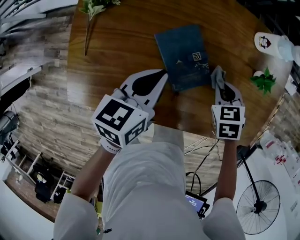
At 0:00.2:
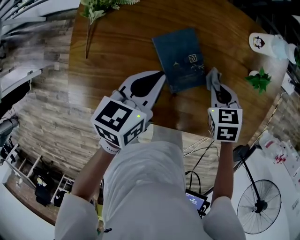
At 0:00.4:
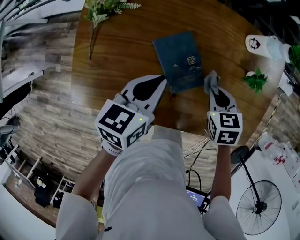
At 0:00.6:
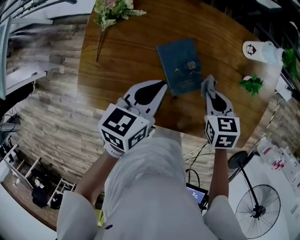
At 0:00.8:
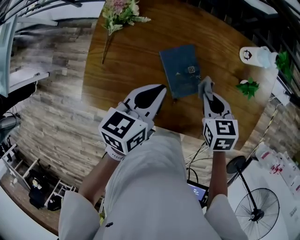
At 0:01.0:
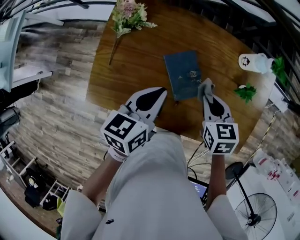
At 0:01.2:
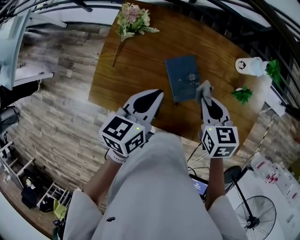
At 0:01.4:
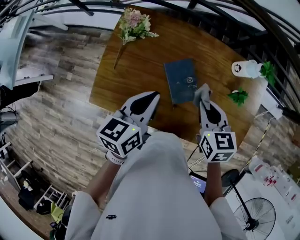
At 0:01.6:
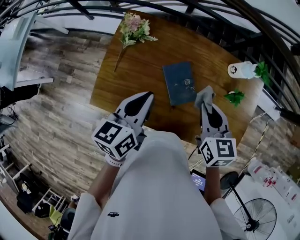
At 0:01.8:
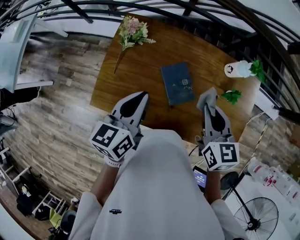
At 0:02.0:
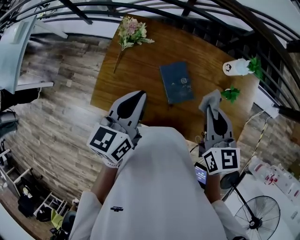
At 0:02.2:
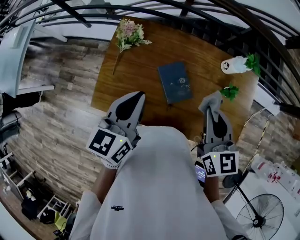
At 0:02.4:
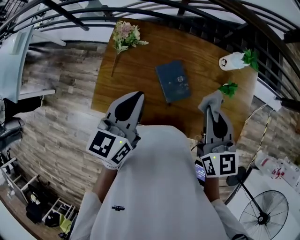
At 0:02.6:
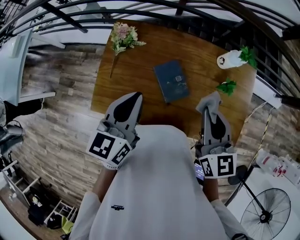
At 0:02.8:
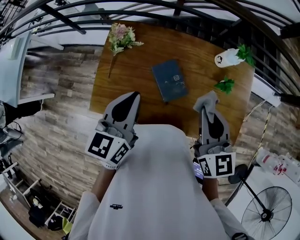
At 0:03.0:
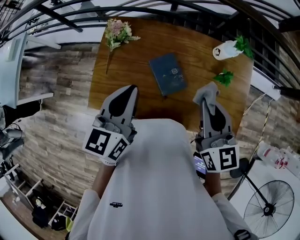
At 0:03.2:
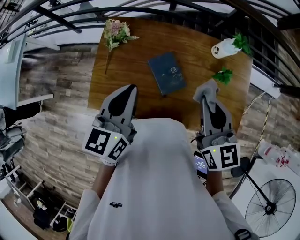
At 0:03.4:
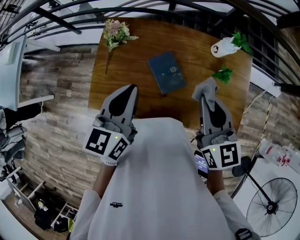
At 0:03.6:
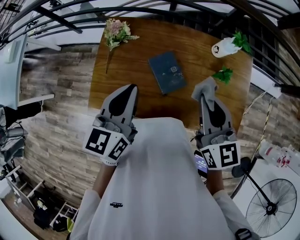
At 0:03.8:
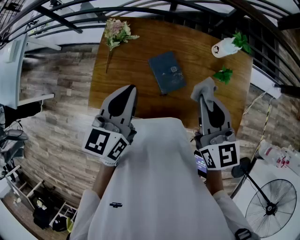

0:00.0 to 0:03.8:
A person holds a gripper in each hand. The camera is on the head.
0:00.0 to 0:01.2: The left gripper goes about 15 cm upward. The right gripper moves upward and to the left, approximately 20 cm, and rotates about 30 degrees.
0:01.2 to 0:02.6: Both grippers travel together upward, some 15 cm. The right gripper points its fingers about 30 degrees further upward.
0:02.6 to 0:03.8: The grippers make only small movements.

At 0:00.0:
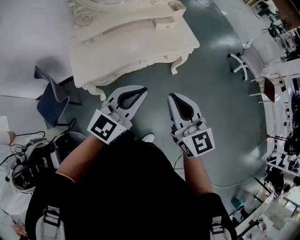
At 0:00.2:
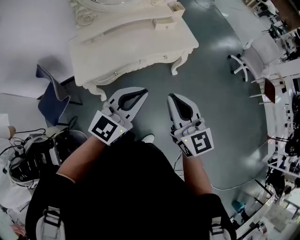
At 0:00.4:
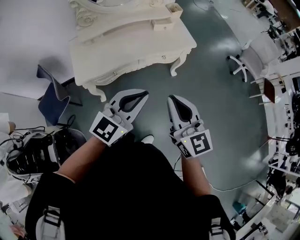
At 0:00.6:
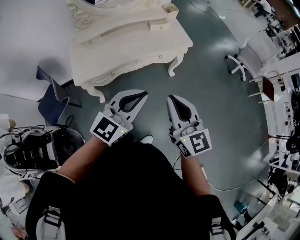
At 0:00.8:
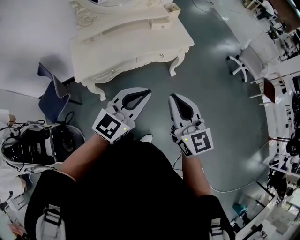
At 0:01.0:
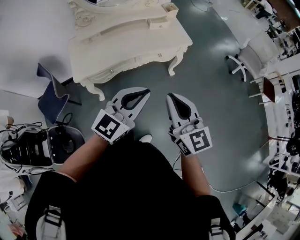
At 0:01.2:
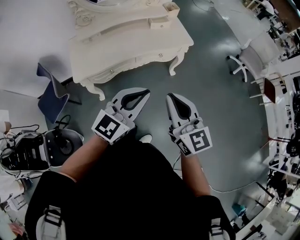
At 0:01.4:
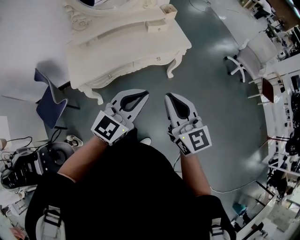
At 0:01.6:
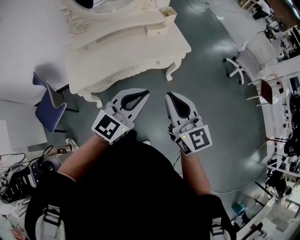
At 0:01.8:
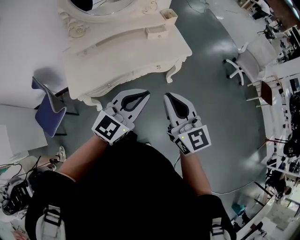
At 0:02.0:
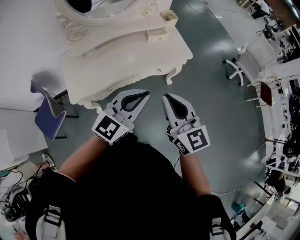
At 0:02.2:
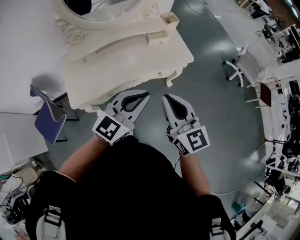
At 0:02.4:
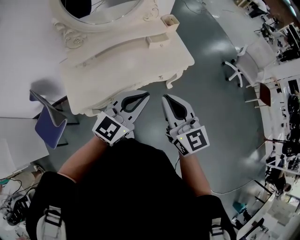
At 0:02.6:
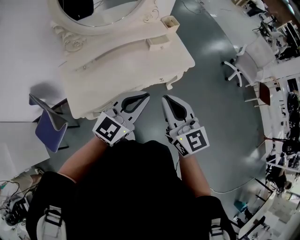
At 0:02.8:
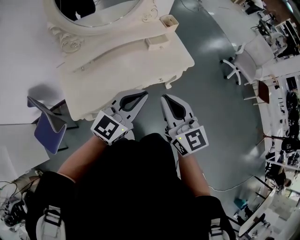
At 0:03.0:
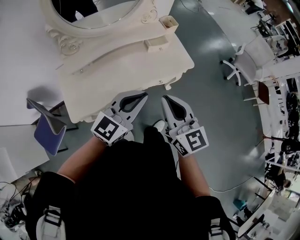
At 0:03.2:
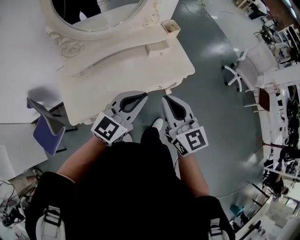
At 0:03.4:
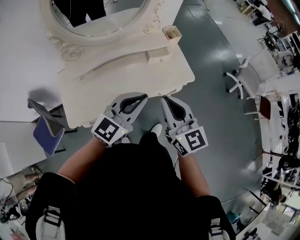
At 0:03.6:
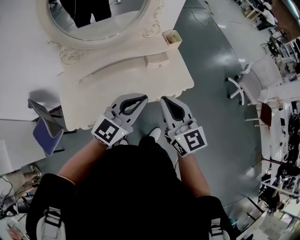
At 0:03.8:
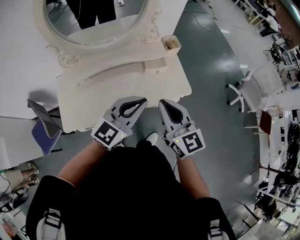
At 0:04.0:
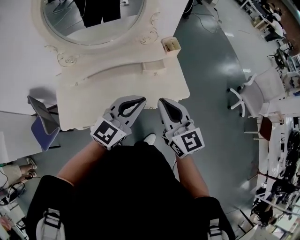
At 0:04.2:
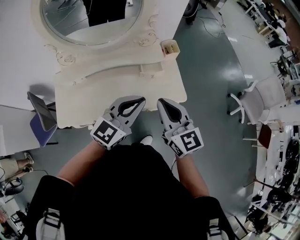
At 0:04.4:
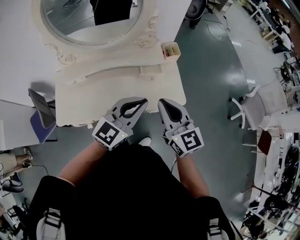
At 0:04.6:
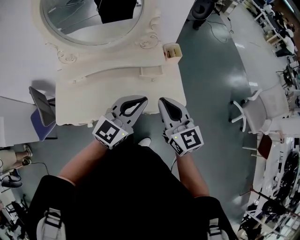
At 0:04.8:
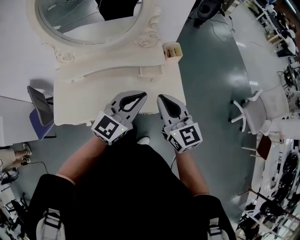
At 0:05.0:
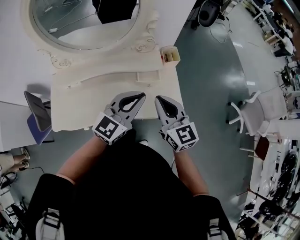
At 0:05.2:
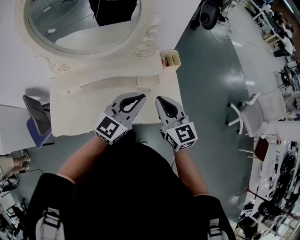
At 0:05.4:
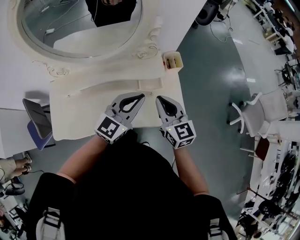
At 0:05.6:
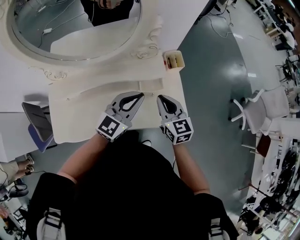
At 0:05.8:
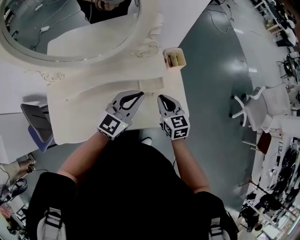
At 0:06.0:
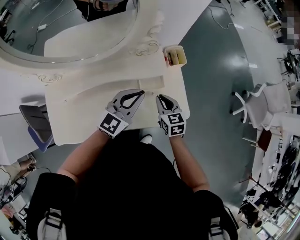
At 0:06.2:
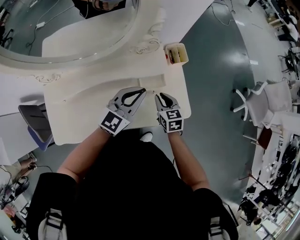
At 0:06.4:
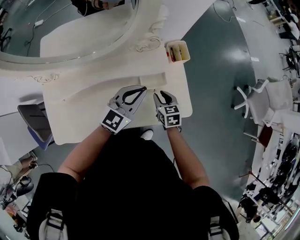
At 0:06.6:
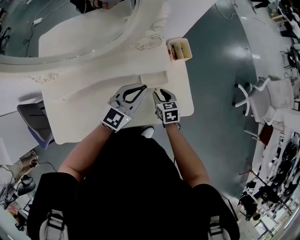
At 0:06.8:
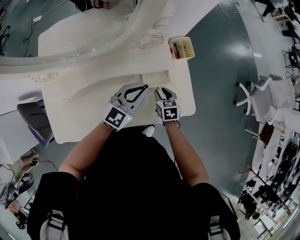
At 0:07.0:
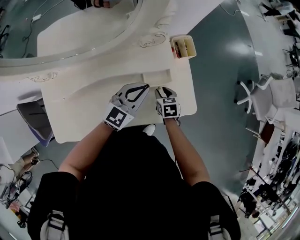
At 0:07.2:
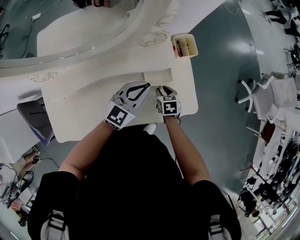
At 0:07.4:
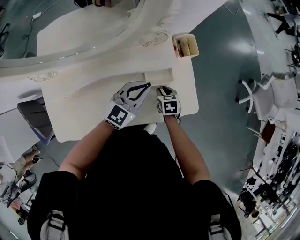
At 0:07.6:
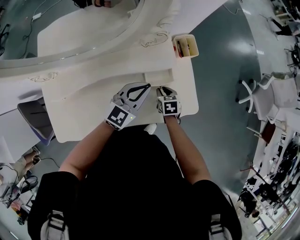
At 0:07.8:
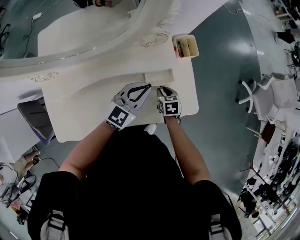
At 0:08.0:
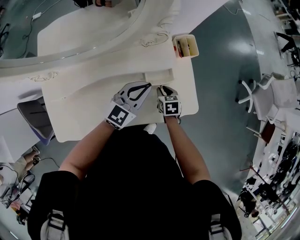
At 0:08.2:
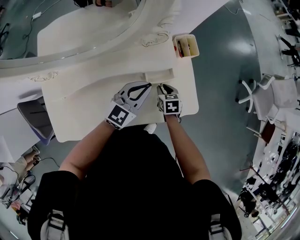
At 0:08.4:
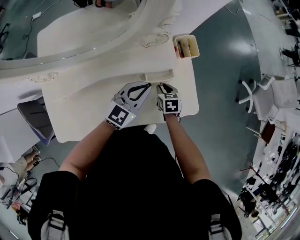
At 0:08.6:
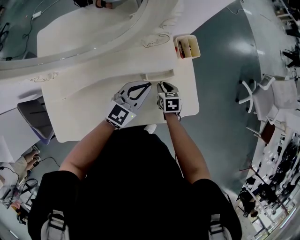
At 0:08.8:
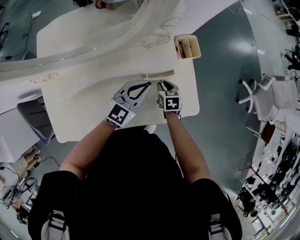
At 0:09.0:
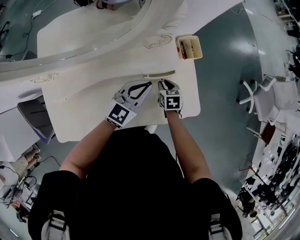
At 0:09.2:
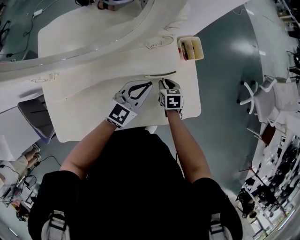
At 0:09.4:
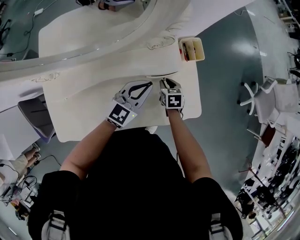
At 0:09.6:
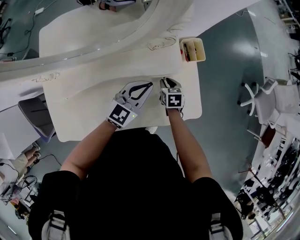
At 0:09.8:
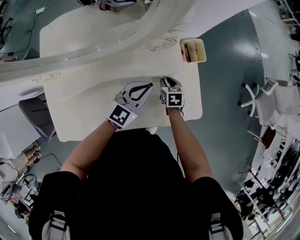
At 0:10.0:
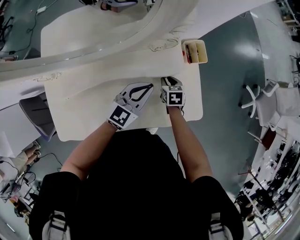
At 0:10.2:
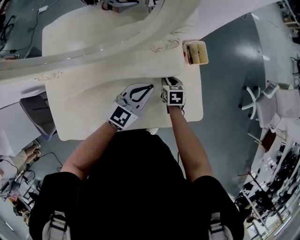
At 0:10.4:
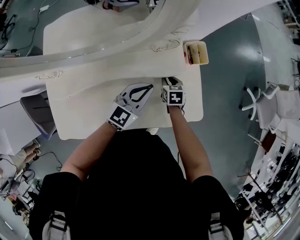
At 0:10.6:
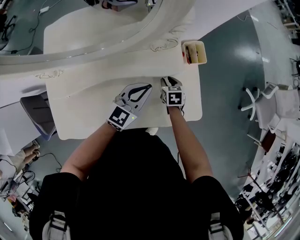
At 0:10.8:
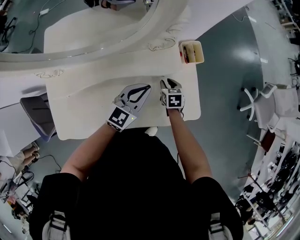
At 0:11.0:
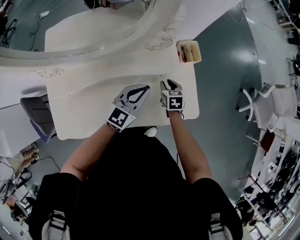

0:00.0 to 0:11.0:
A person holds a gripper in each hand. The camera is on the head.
0:00.0 to 0:01.6: The left gripper shifts about 5 cm to the right, and moves some 10 cm backward and comes back. Meanwhile the right gripper travels backward and back again, some 10 cm each way.
0:01.6 to 0:03.2: The grippers both shift forward and to the left by roughly 20 cm.
0:03.2 to 0:04.8: The two grippers go roughly 25 cm forward and to the right.
0:04.8 to 0:06.2: The right gripper travels downward and forward by about 30 cm, and tilts its fingers some 30 degrees downward. Meanwhile the left gripper moves forward and downward, approximately 20 cm.
0:06.2 to 0:07.8: The left gripper shifts about 5 cm downward, while the right gripper shifts about 10 cm downward.
0:07.8 to 0:09.4: The right gripper moves forward, roughly 5 cm.
0:09.4 to 0:11.0: The grippers move only a little.

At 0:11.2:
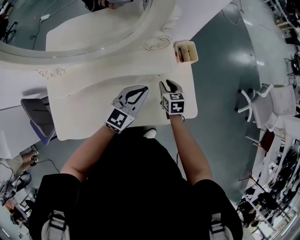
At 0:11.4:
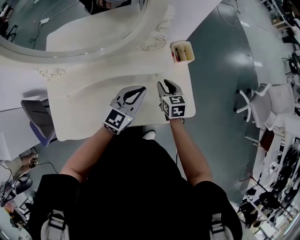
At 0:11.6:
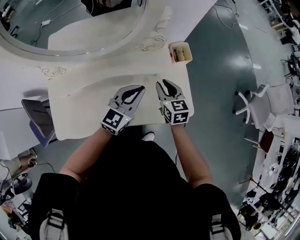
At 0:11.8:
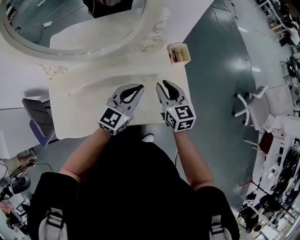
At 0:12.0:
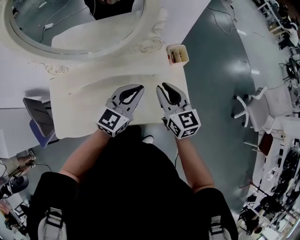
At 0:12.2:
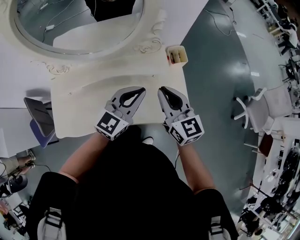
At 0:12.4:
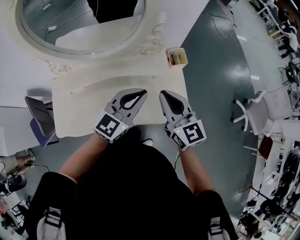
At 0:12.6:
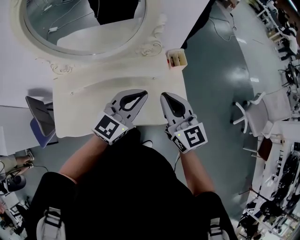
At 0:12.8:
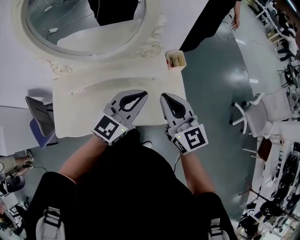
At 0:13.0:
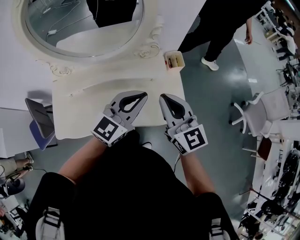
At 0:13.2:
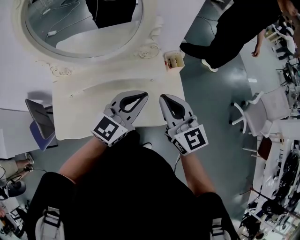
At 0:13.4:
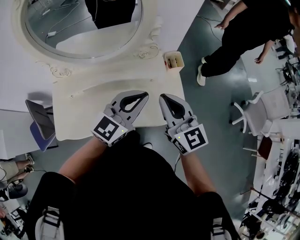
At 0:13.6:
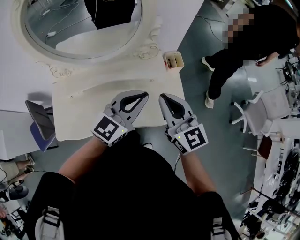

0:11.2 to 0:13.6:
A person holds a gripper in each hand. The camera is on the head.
0:11.2 to 0:12.4: The left gripper travels upward and backward by about 15 cm. Meanwhile the right gripper goes approximately 30 cm upward and backward, tilts its fingers approximately 40 degrees upward, and closes its fingers.
0:12.4 to 0:13.6: The grippers stay close to where they were, moving slightly.

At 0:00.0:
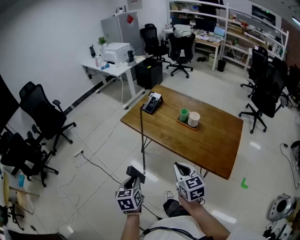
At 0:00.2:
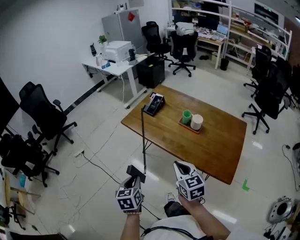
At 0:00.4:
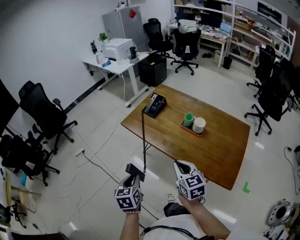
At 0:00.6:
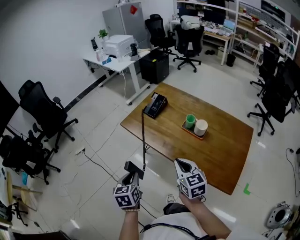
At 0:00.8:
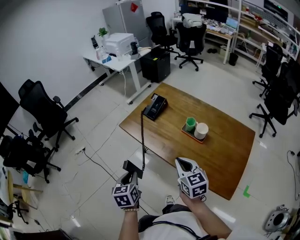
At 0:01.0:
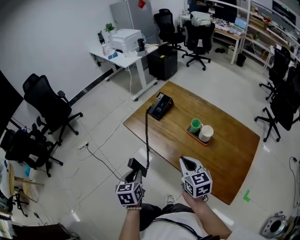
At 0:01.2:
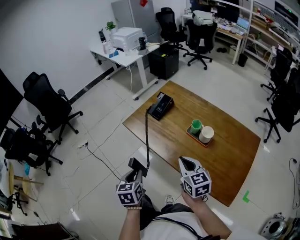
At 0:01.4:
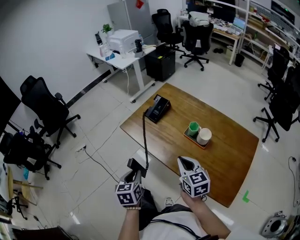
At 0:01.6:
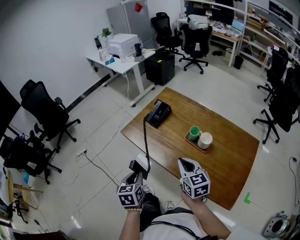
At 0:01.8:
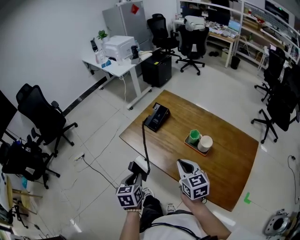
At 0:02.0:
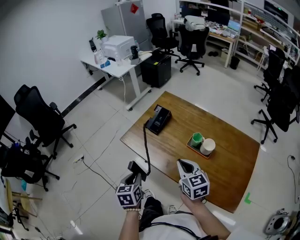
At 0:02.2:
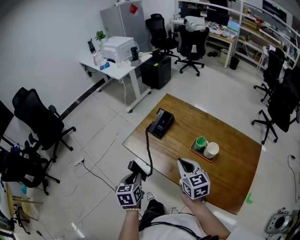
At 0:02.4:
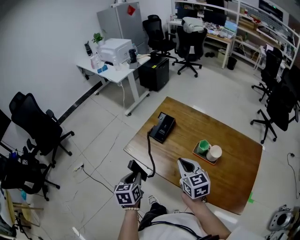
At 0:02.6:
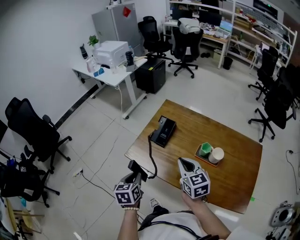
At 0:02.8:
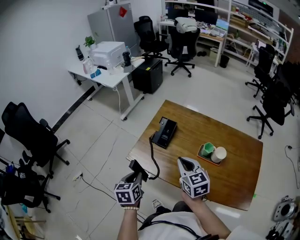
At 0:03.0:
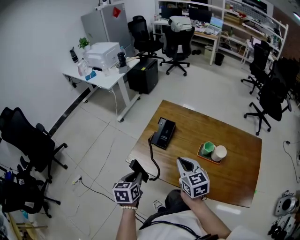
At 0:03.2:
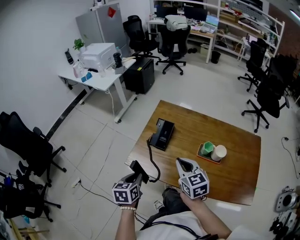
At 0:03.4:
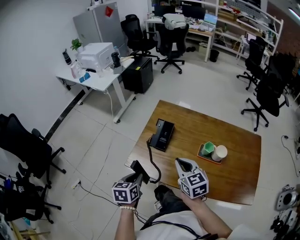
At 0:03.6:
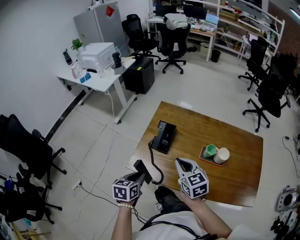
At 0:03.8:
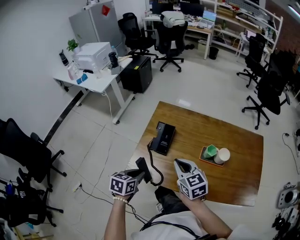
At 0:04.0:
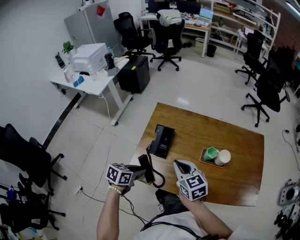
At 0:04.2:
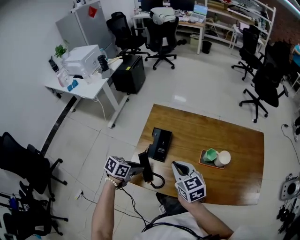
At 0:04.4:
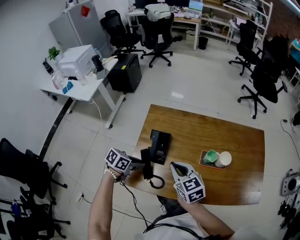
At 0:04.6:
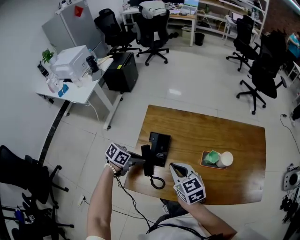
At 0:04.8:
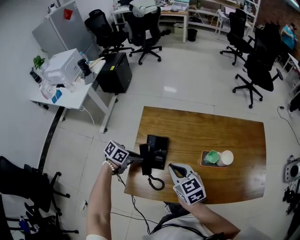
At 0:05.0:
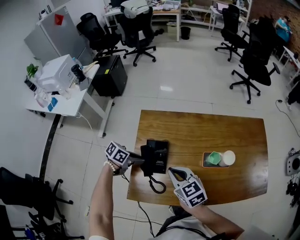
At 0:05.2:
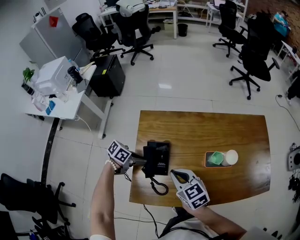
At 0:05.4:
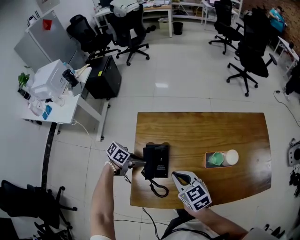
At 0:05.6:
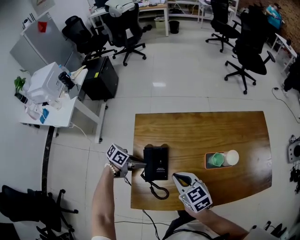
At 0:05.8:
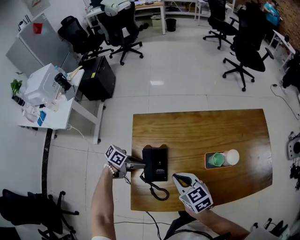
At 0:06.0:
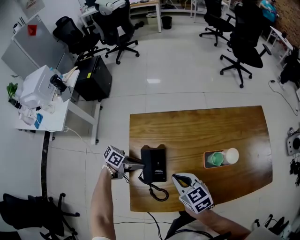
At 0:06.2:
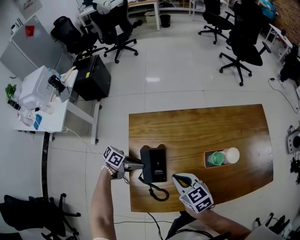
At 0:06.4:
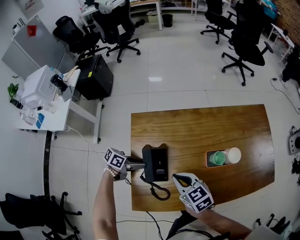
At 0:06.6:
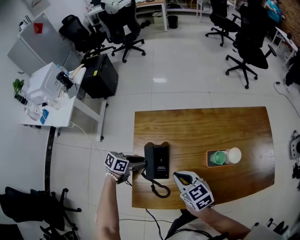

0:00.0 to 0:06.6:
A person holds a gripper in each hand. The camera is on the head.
0:00.0 to 0:01.6: Both grippers move forward, some 20 cm.
0:01.6 to 0:03.2: The grippers both shift forward and to the left by approximately 20 cm. The left gripper turns by some 20 degrees.
0:03.2 to 0:05.0: The left gripper ends up roughly 30 cm from where it was, and changes its angle by some 70 degrees. Meanwhile the right gripper changes place by some 15 cm.
0:05.0 to 0:06.6: The left gripper opens its fingers.
